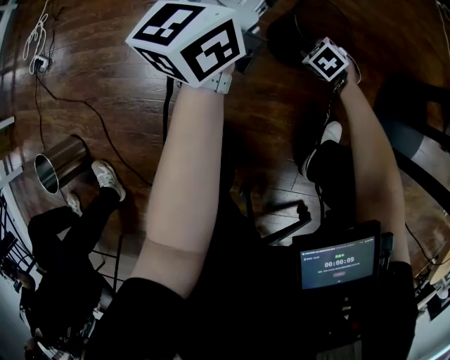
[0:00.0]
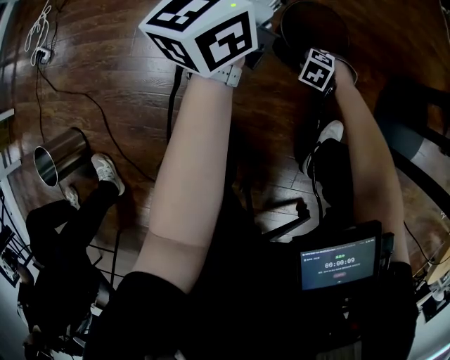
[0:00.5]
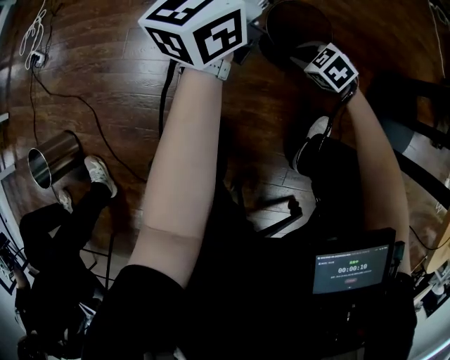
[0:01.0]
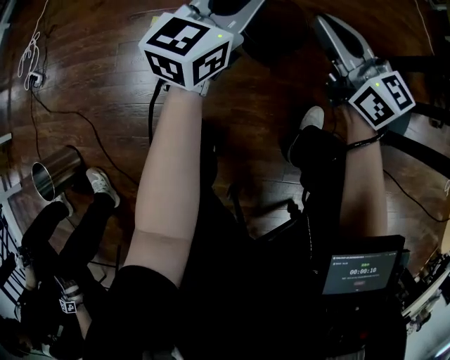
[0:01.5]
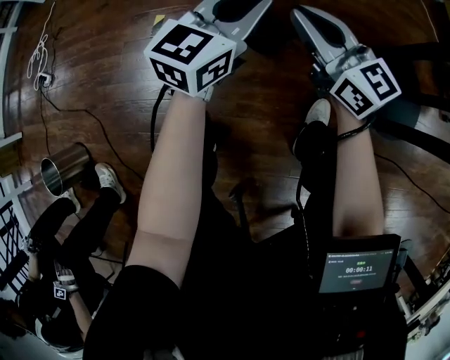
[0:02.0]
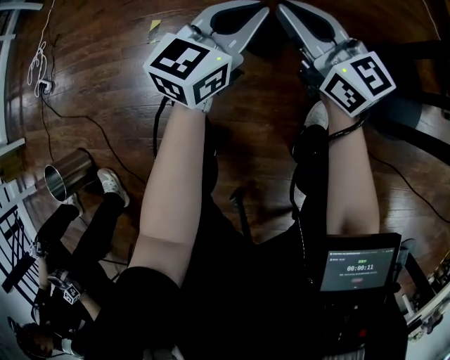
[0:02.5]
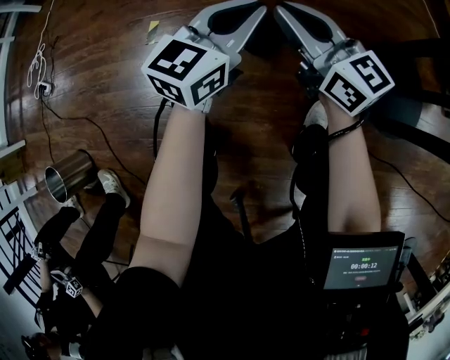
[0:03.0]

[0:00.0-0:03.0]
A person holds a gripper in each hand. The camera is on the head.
0:00.0 to 0:01.5: The right gripper is displaced upward by some 35 cm, and tilts its fingers some 70 degrees upward. Meanwhile the left gripper changes place by approximately 10 cm.
0:01.5 to 0:03.0: The left gripper ends up roughly 5 cm from where it was.

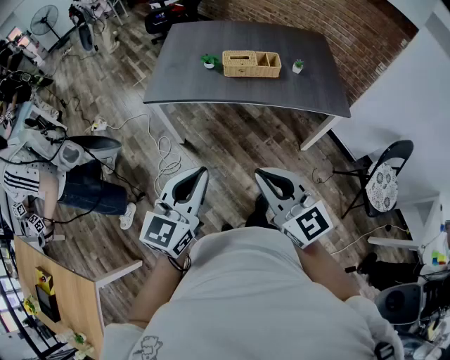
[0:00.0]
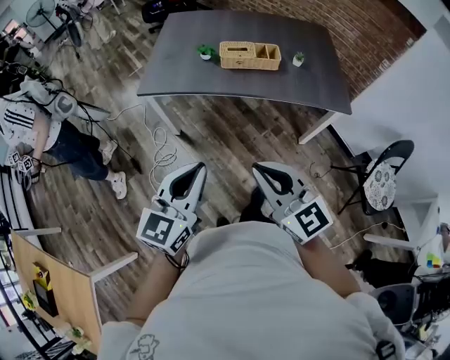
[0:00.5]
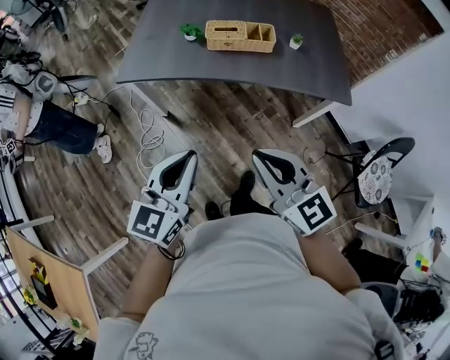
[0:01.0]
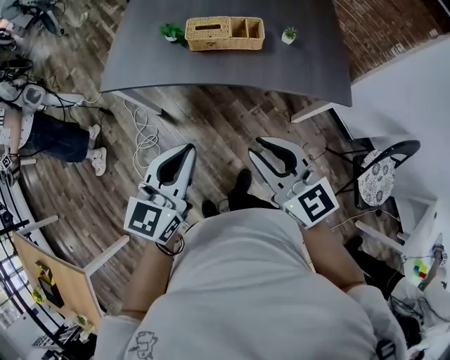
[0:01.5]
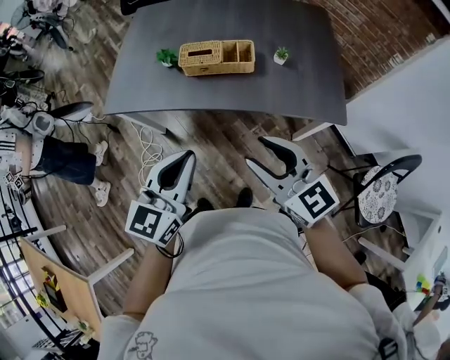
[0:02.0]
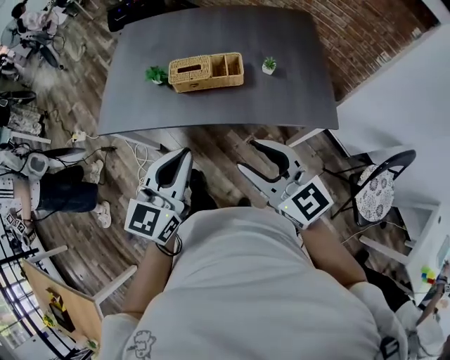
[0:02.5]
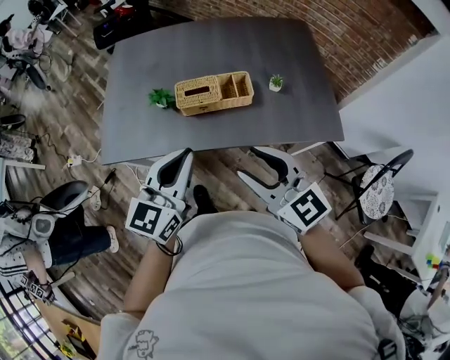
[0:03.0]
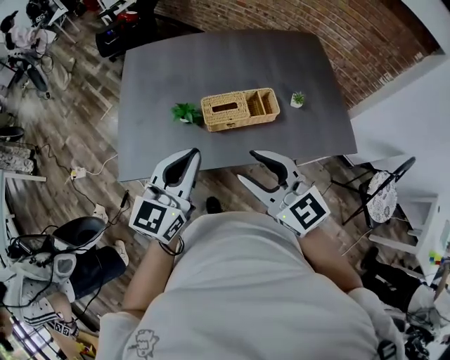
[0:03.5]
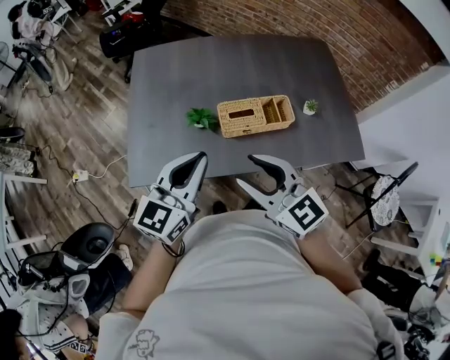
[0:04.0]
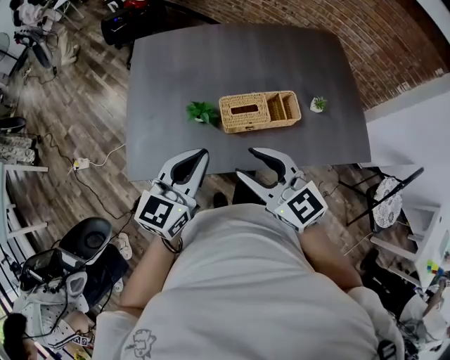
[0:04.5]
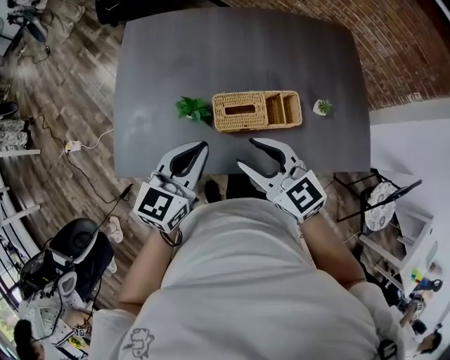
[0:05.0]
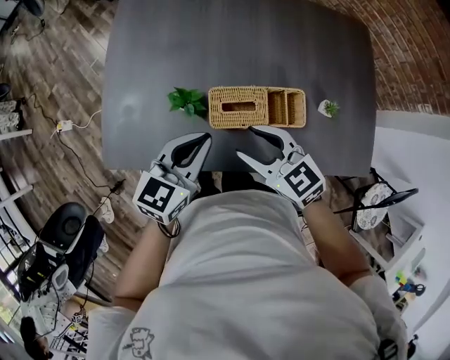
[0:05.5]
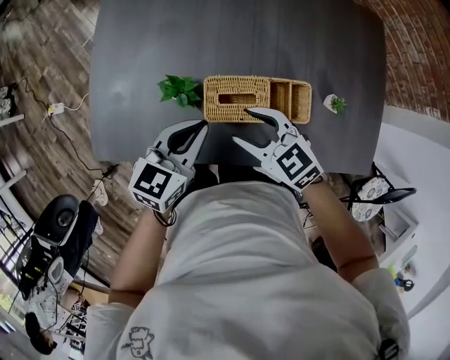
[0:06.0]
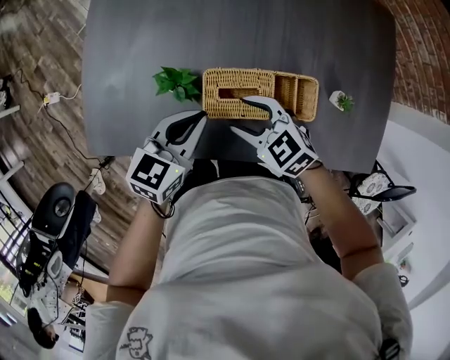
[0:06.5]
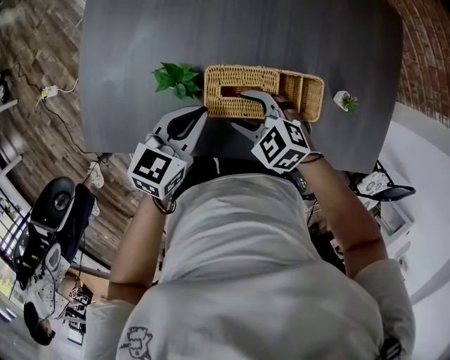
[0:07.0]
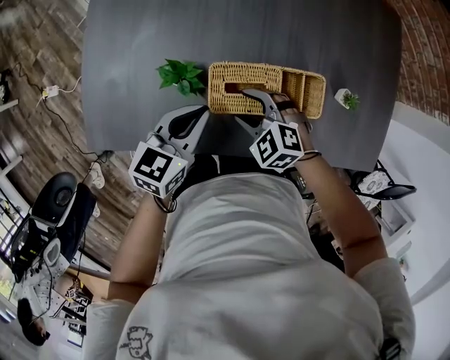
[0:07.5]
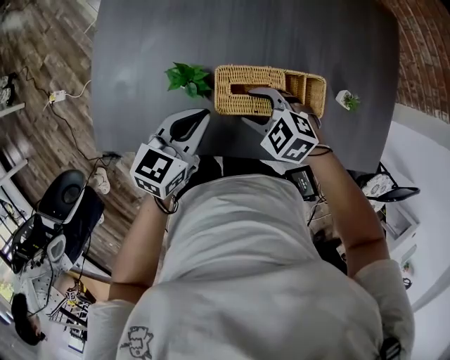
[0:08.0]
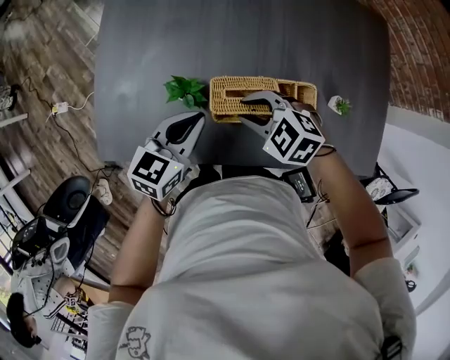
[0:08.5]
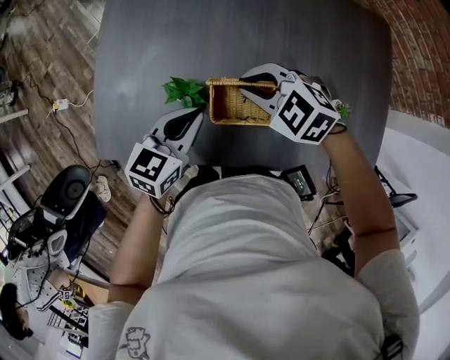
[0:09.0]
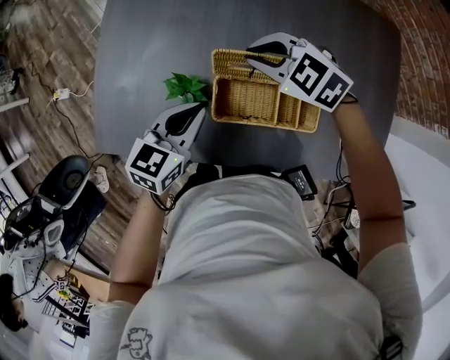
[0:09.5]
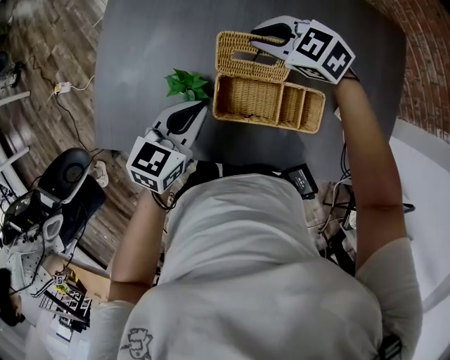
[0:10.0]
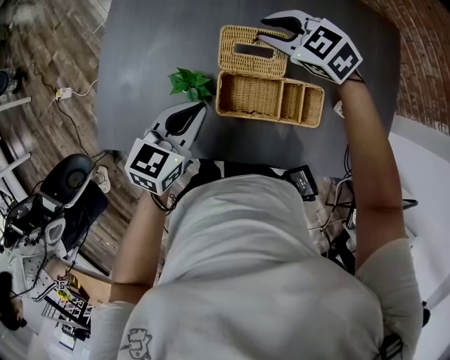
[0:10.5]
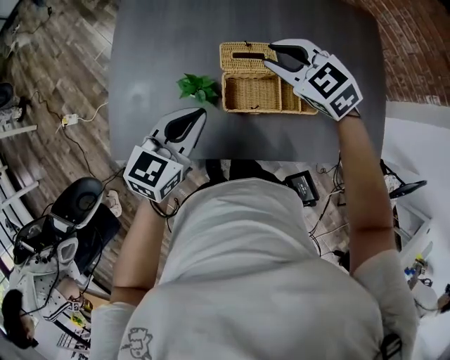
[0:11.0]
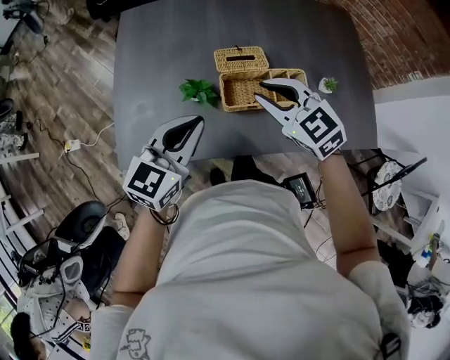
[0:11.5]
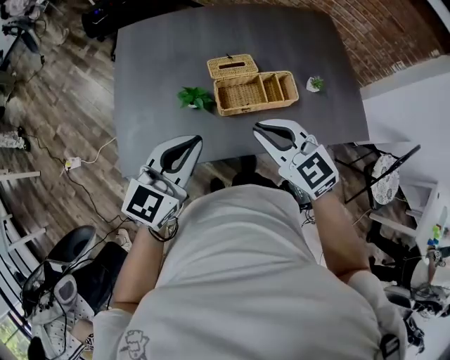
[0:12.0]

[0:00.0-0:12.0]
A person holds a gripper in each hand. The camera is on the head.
0:00.0 to 0:02.0: Both grippers move forward and to the right, approximately 30 cm. The right gripper opens.
0:02.0 to 0:04.0: The right gripper shifts approximately 30 cm to the left and forward. Meanwhile the left gripper moves forward and to the left, approximately 30 cm.
0:04.0 to 0:06.0: The left gripper travels downward, forward and to the right by approximately 25 cm, and rotates some 20 degrees. Meanwhile the right gripper shifts roughly 25 cm downward and forward, and swivels about 30 degrees.
0:06.0 to 0:08.0: The right gripper shifts approximately 10 cm downward, and swivels some 30 degrees.
0:08.0 to 0:10.0: The right gripper goes some 20 cm forward, and closes.
0:10.0 to 0:12.0: The left gripper shifts by approximately 25 cm, and changes its angle by about 30 degrees. Meanwhile the right gripper shifts by about 35 cm, and changes its angle by some 40 degrees.

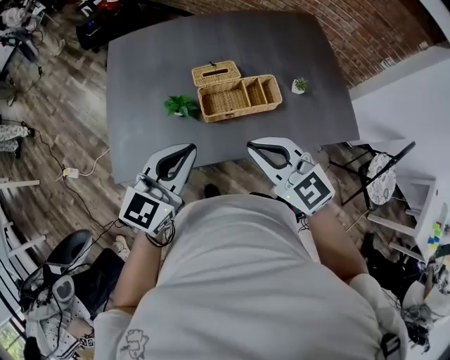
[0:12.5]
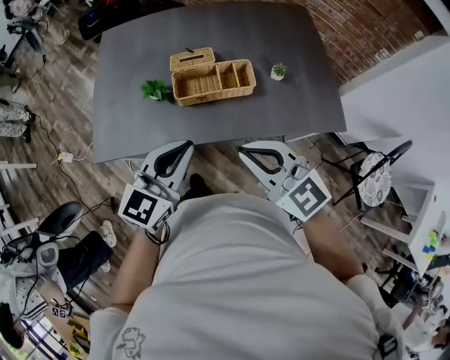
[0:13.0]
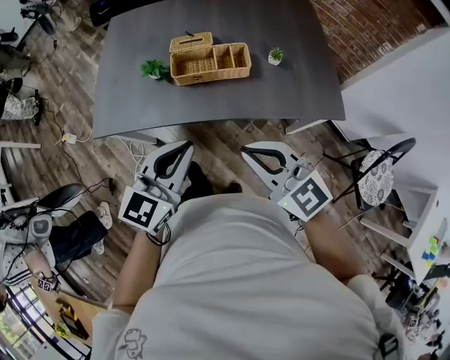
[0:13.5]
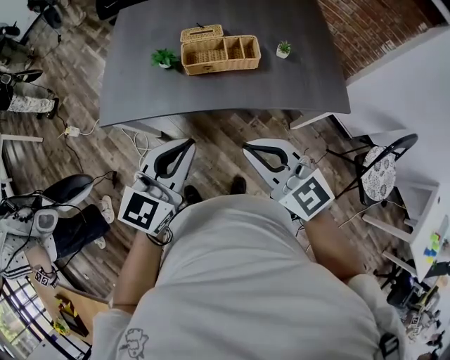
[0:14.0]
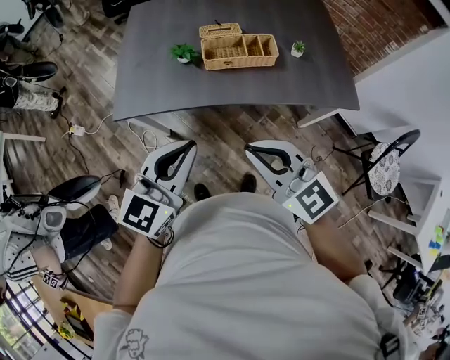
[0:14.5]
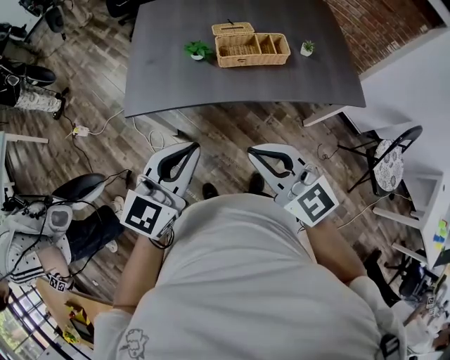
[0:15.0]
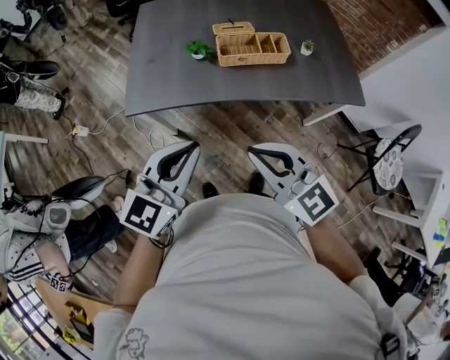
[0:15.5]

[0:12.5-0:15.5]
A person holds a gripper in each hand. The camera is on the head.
0:12.5 to 0:14.0: The left gripper goes about 25 cm backward and to the right; the right gripper goes roughly 20 cm backward.
0:14.0 to 0:15.5: The two grippers go about 15 cm to the left.

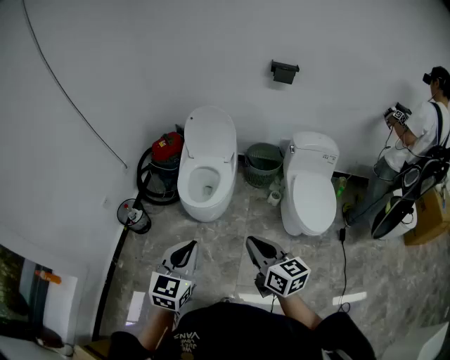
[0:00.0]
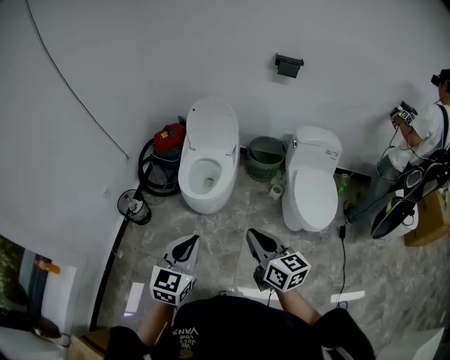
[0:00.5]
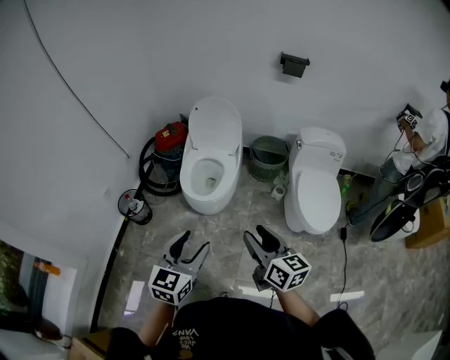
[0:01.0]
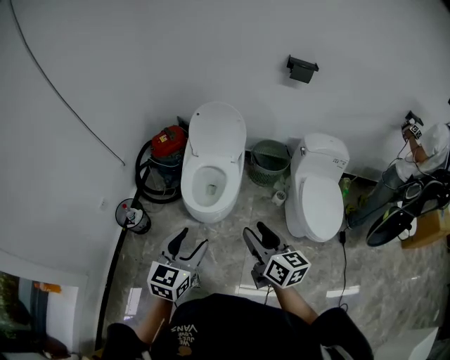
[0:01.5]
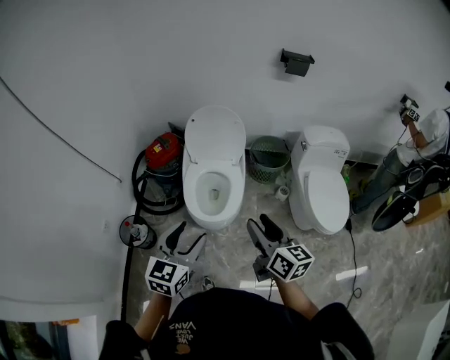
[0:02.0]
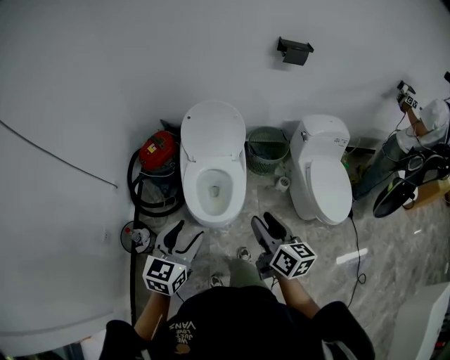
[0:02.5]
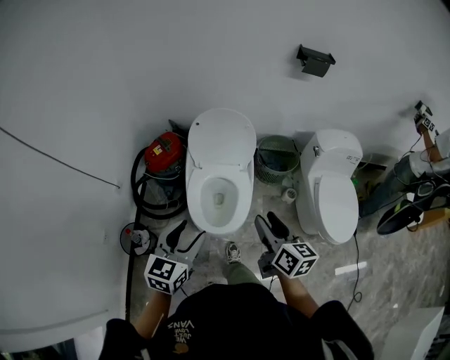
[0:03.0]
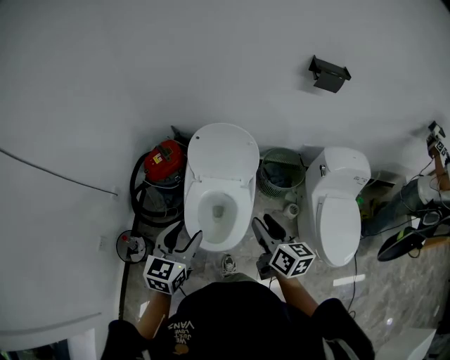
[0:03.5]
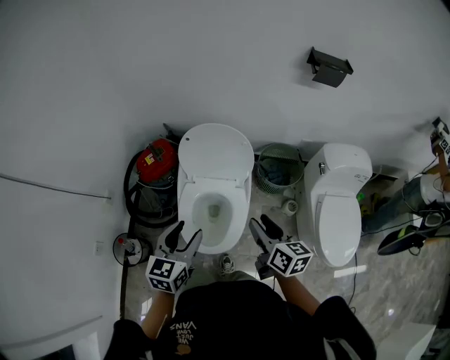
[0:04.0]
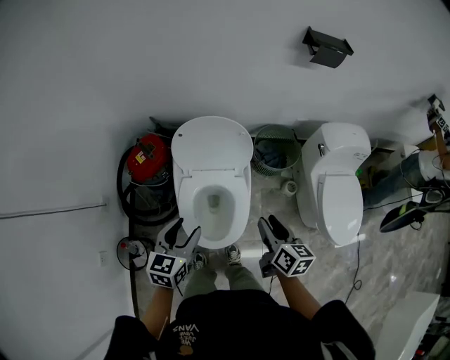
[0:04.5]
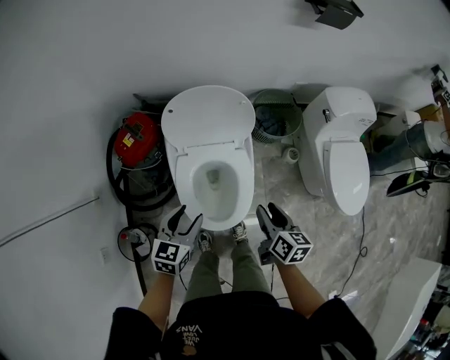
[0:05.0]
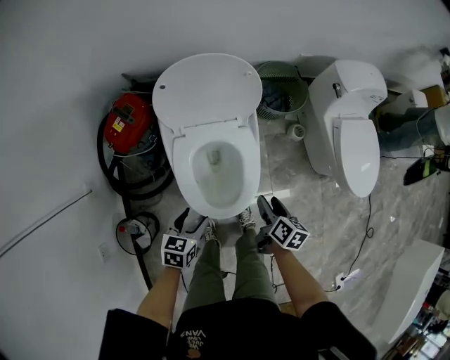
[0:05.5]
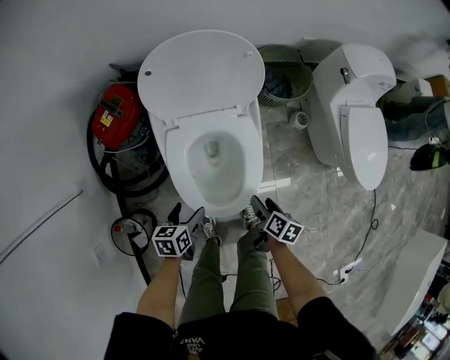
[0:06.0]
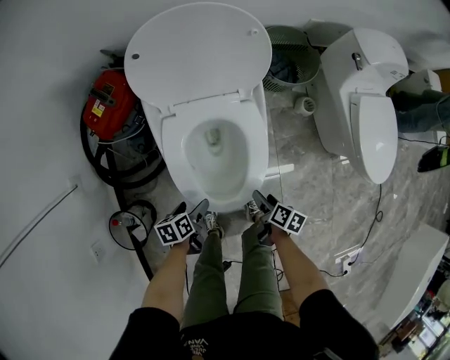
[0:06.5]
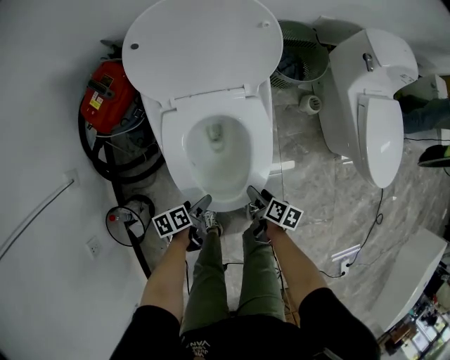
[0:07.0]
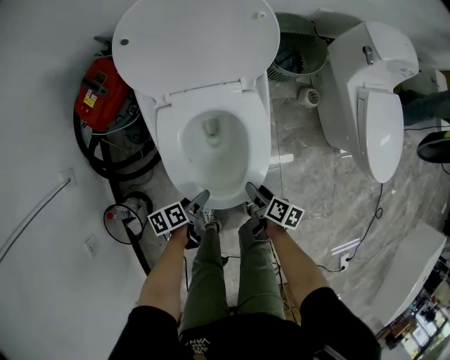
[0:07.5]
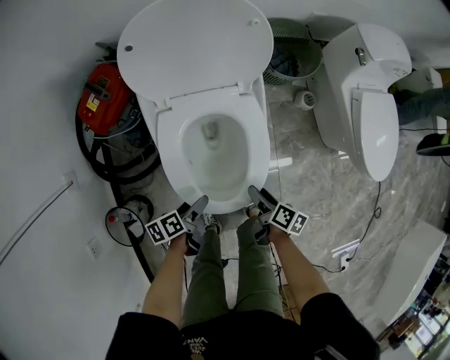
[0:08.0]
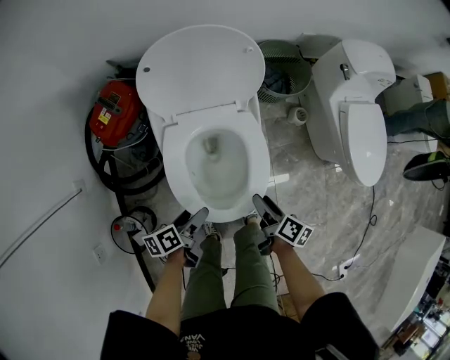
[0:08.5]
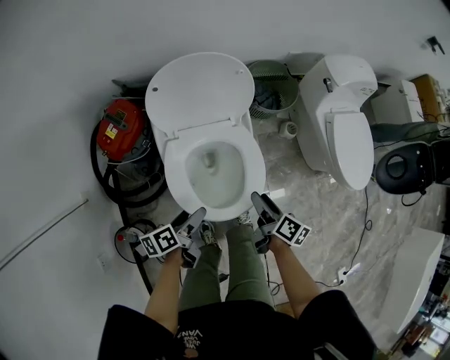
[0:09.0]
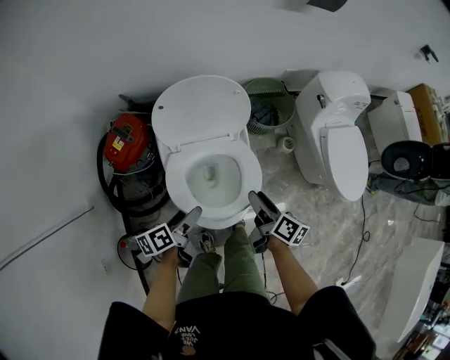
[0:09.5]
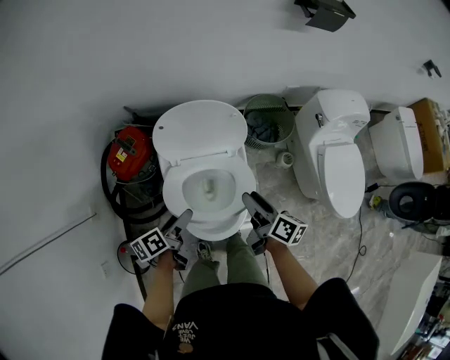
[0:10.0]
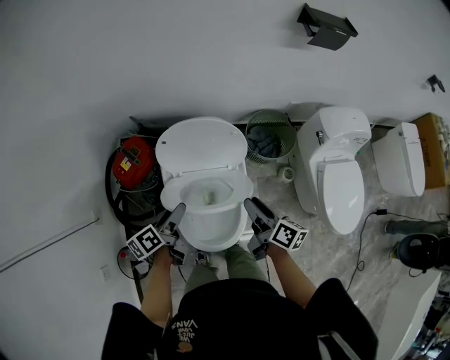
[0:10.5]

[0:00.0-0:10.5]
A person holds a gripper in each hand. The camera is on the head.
0:00.0 to 0:02.0: Both grippers travel together forward and to the left, about 25 cm. The left gripper opens up; the right gripper opens up.
0:02.0 to 0:04.0: Both grippers travel together forward, about 30 cm.
0:04.0 to 0:06.5: The grippers both shift downward by approximately 50 cm. The right gripper angles its fingers downward, by approximately 40 degrees, and opens, while the left gripper tilts its fingers some 30 degrees downward, and opens.
0:06.5 to 0:08.5: Both grippers travel together upward, approximately 10 cm. The left gripper changes its angle by approximately 20 degrees.
0:08.5 to 0:10.5: The two grippers go roughly 25 cm upward and forward. The right gripper swivels about 20 degrees, while the left gripper changes its angle by approximately 20 degrees.
